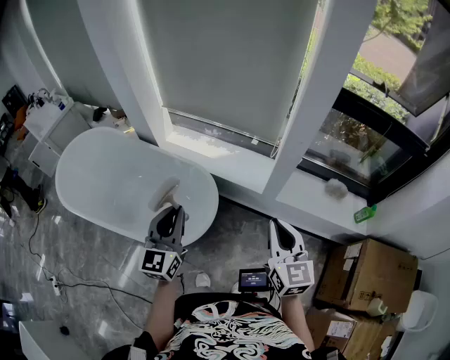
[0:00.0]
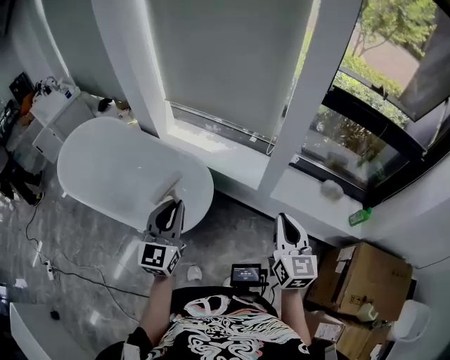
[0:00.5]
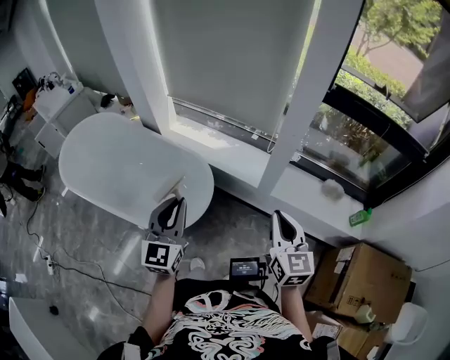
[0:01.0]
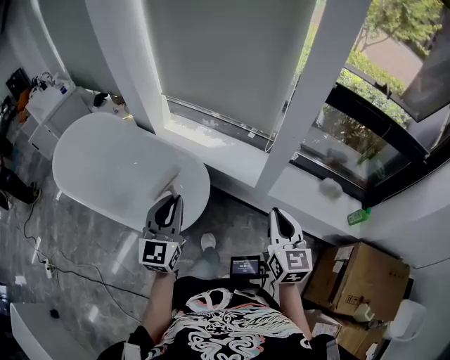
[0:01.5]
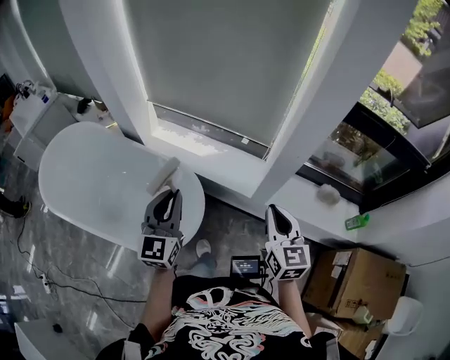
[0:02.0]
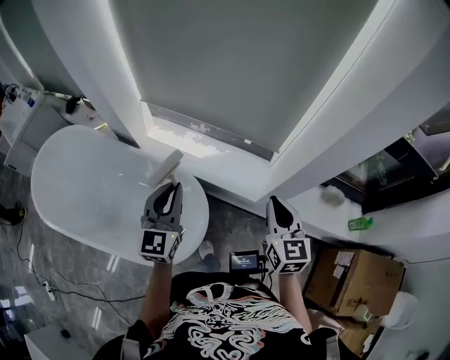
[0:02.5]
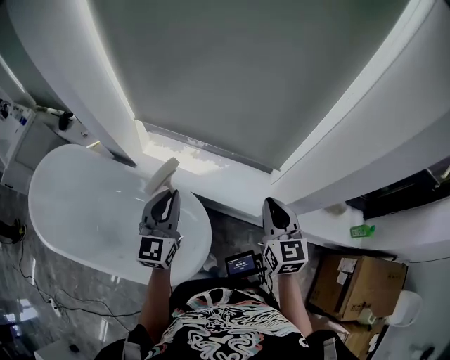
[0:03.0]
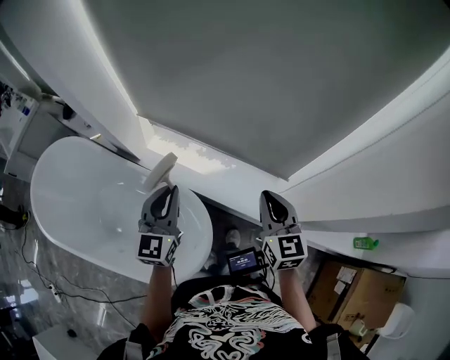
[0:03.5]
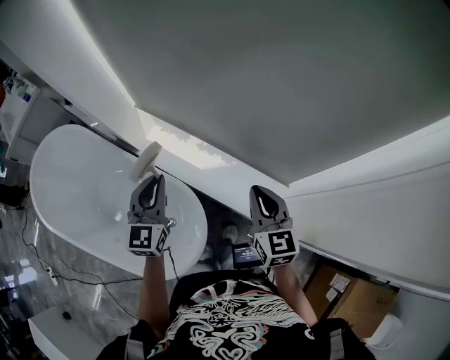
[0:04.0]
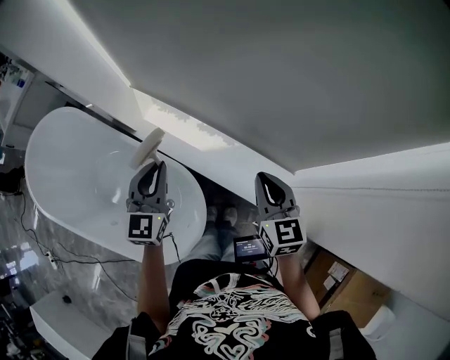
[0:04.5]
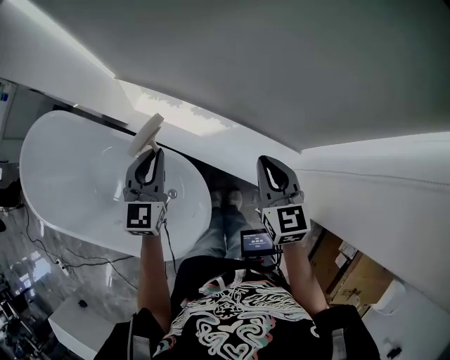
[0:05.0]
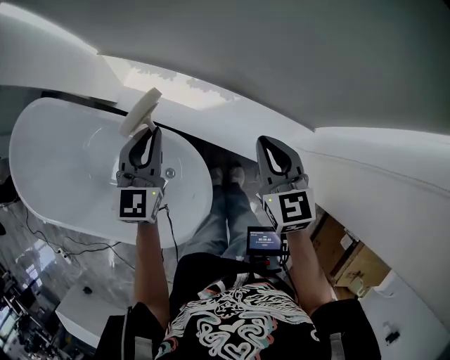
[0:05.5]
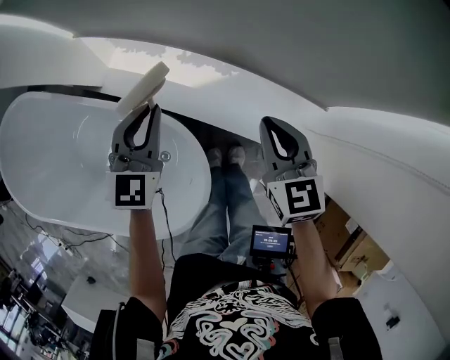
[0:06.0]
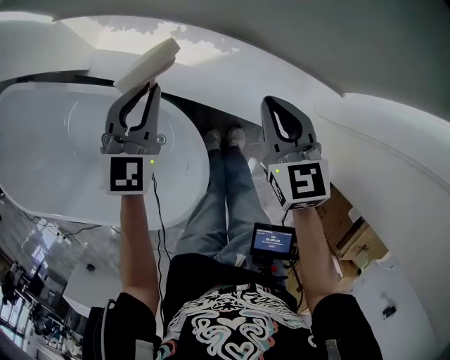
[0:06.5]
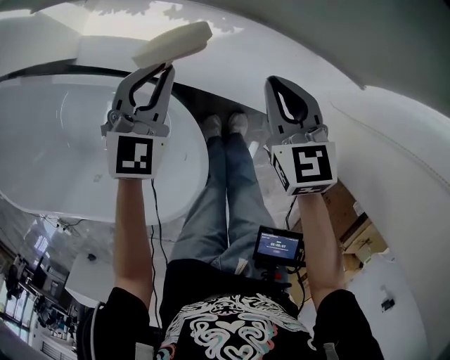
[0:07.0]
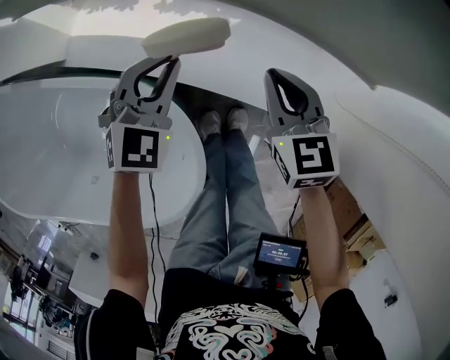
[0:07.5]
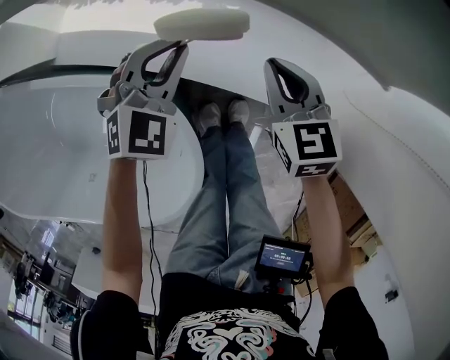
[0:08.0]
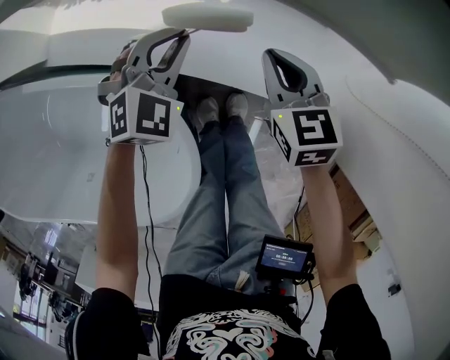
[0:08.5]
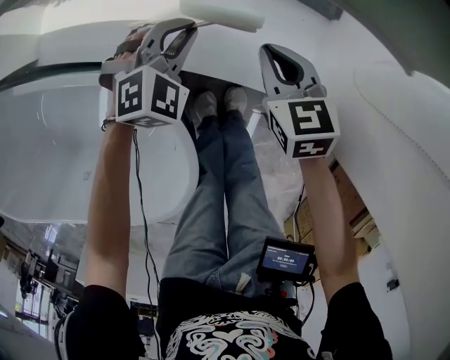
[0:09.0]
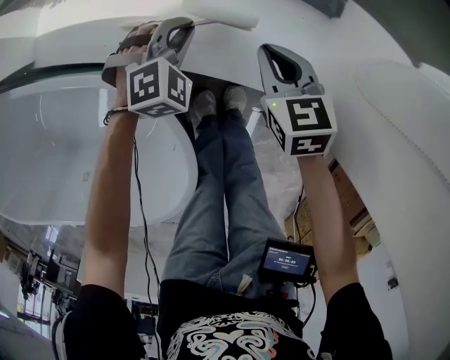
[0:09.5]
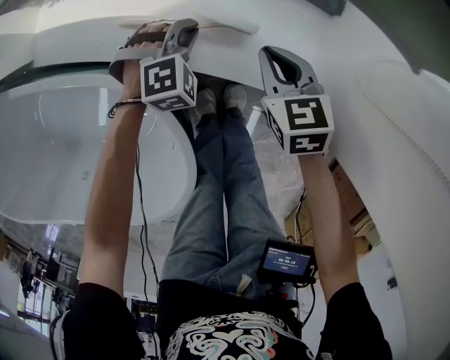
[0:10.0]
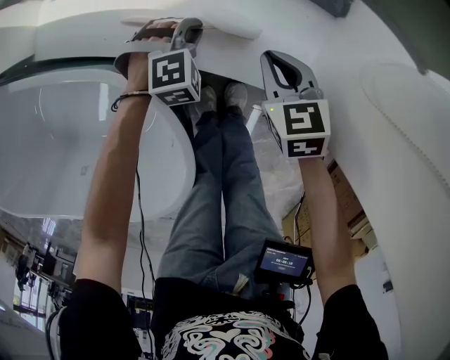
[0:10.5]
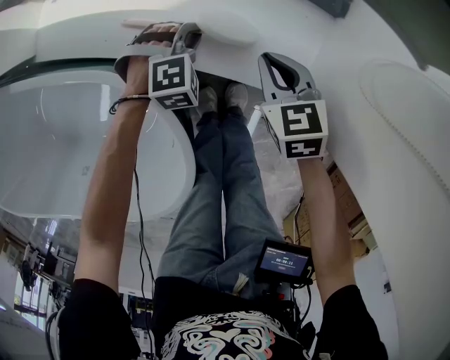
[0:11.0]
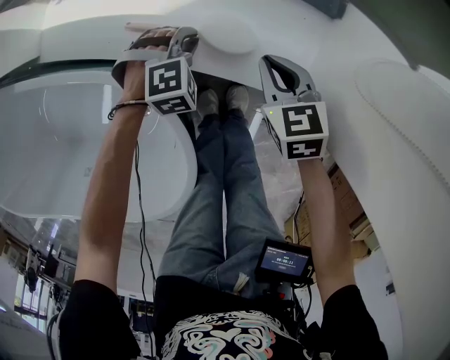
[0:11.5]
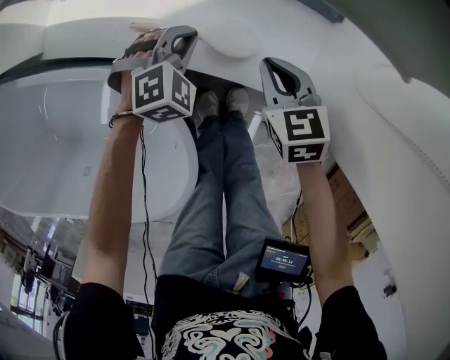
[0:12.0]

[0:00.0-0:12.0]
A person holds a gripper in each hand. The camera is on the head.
0:00.0 to 0:02.0: Both grippers move forward, some 15 cm.
0:02.0 to 0:04.0: Both grippers move forward, approximately 35 cm.
0:04.0 to 0:06.0: The left gripper is displaced downward and forward by approximately 20 cm. The right gripper heads downward, covering about 20 cm.
0:06.0 to 0:08.0: The left gripper is displaced downward and to the right by roughly 25 cm, and swivels roughly 40 degrees; the right gripper moves downward, approximately 25 cm.
0:08.0 to 0:10.0: The left gripper travels downward by about 15 cm, and changes its angle by some 30 degrees; the right gripper goes roughly 10 cm downward.
0:10.0 to 0:12.0: The grippers stay close to where they were, moving slightly.

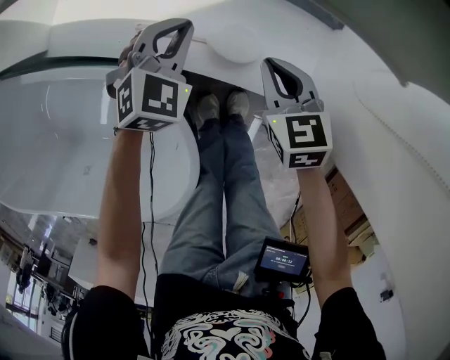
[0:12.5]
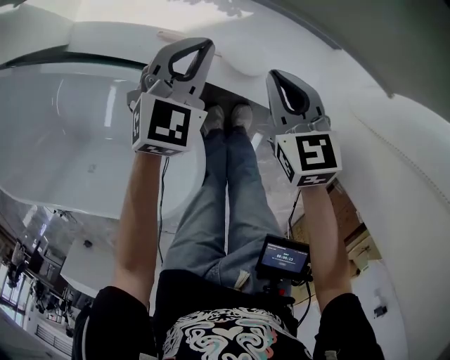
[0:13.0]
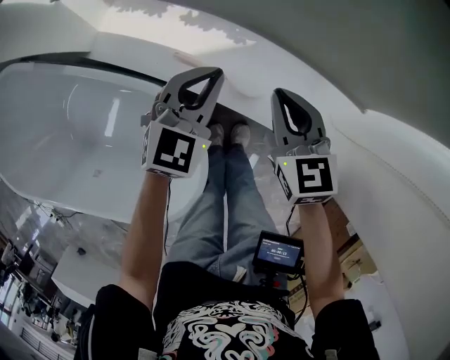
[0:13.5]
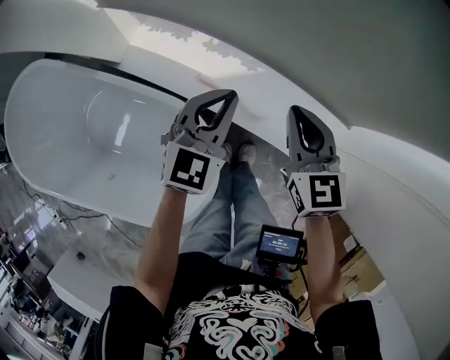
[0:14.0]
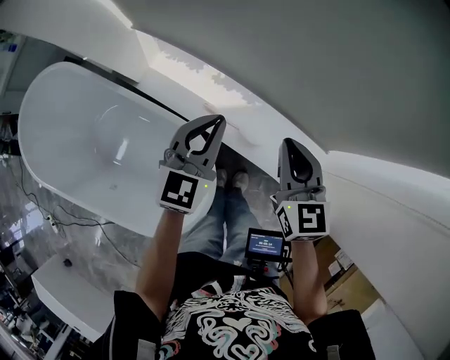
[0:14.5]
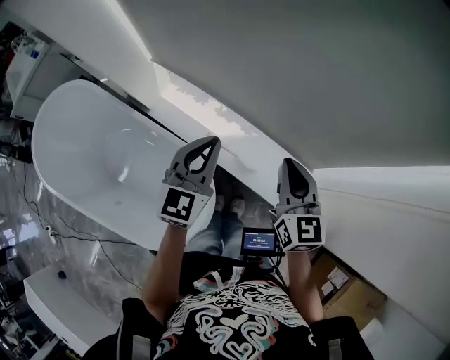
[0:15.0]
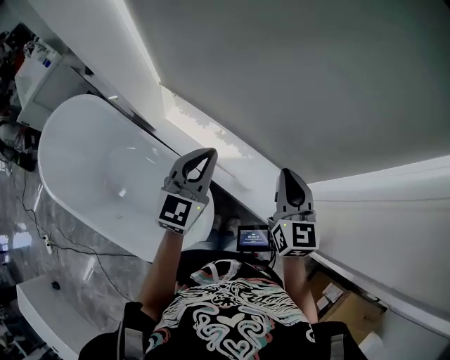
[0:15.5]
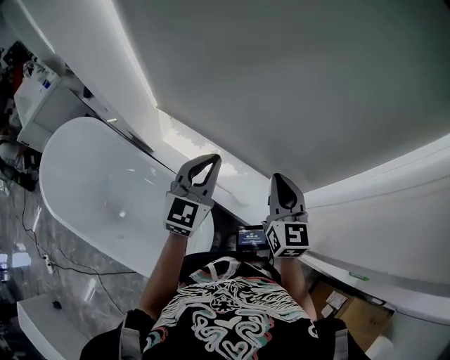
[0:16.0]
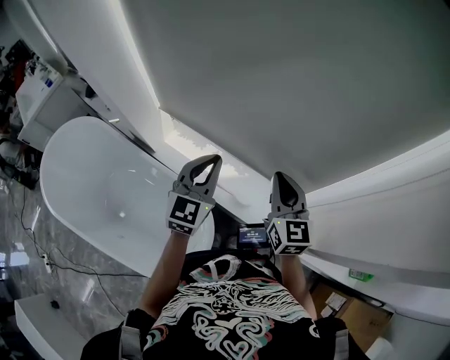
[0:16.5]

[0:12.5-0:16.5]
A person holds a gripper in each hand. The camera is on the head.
0:12.5 to 0:14.5: The grippers both shift upward by some 35 cm. The right gripper swivels some 20 degrees; the left gripper turns by some 40 degrees.
0:14.5 to 0:16.5: The grippers both shift upward by some 15 cm.

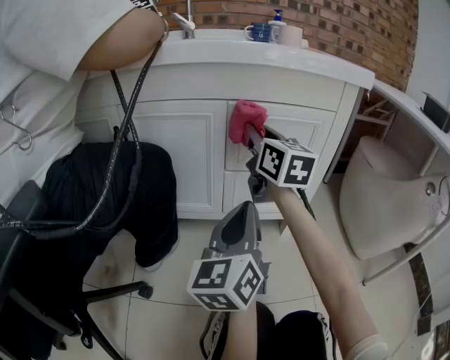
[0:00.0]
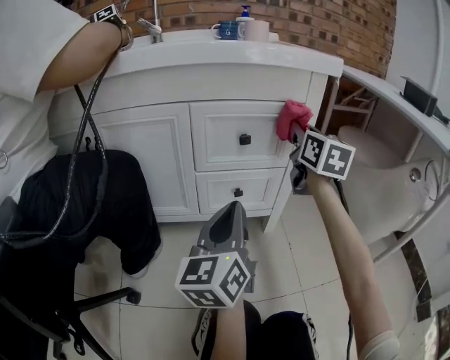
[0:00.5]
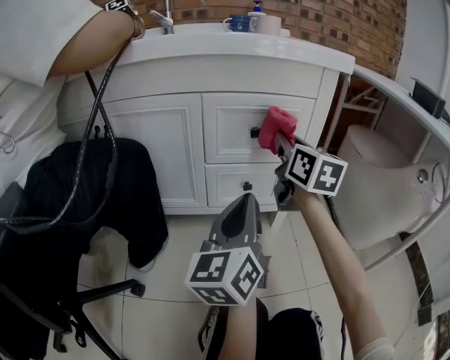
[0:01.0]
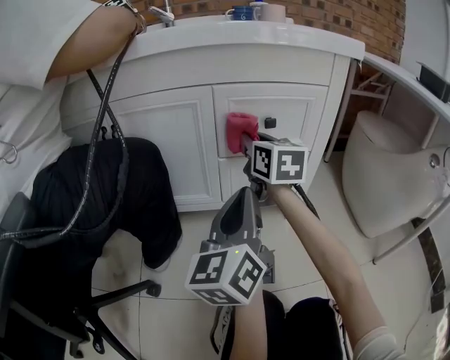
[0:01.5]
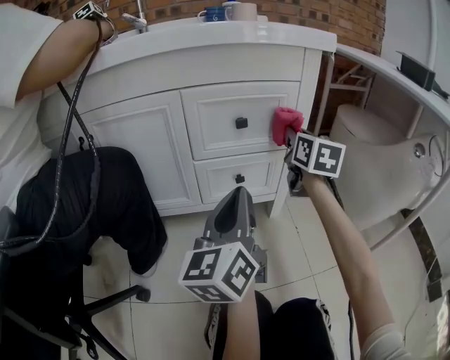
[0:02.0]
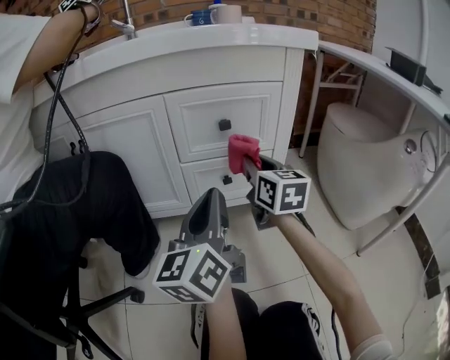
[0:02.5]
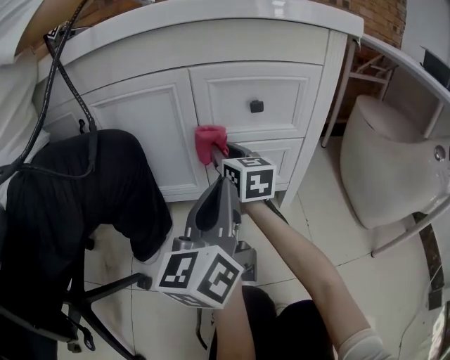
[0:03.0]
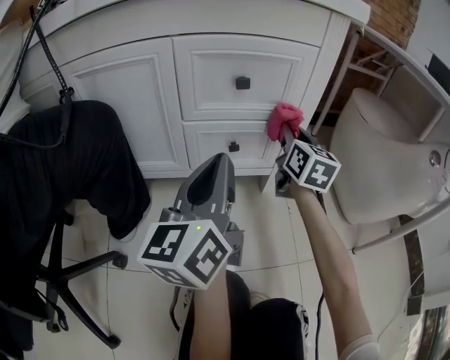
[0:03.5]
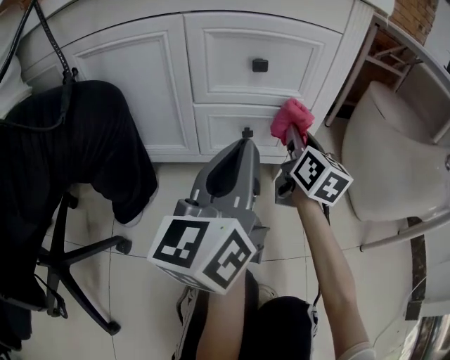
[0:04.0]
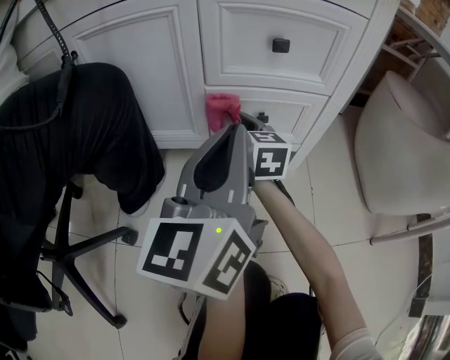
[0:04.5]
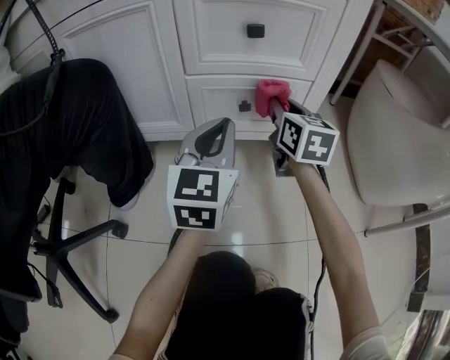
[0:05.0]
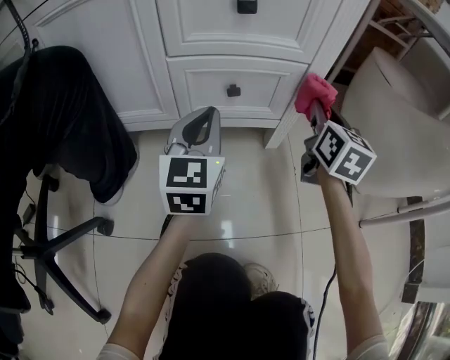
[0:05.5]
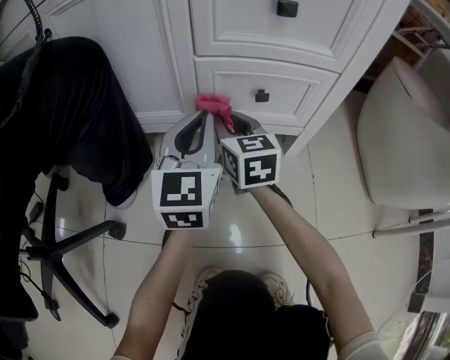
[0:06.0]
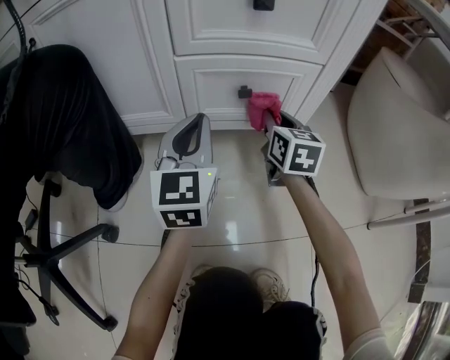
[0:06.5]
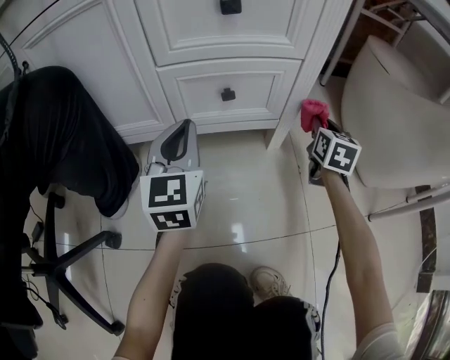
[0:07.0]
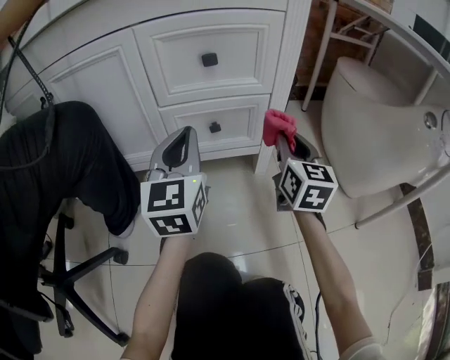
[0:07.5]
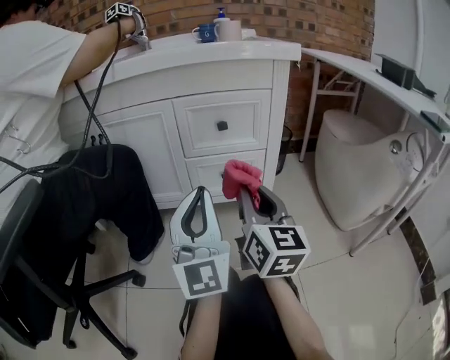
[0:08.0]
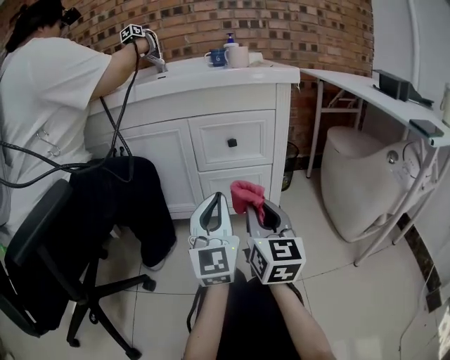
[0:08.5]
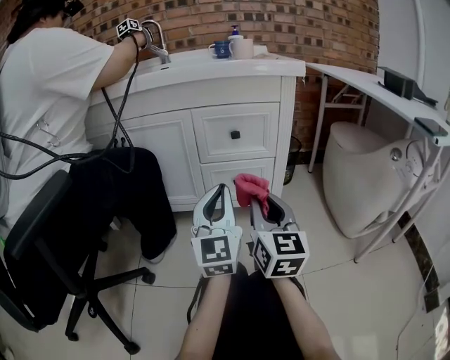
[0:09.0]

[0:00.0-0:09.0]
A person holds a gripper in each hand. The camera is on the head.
0:00.0 to 0:02.0: The right gripper goes left and right, roughly 20 cm each way, reversing 2 times, and changes its angle by approximately 30 degrees. Meanwhile the left gripper moves left and right over approximately 5 cm, changing direction 2 times.
0:02.0 to 0:04.5: The right gripper moves left and right over about 25 cm, changing direction 2 times, and changes its angle by some 30 degrees; the left gripper moves left and right over approximately 5 cm, changing direction 2 times.
0:04.5 to 0:07.0: The left gripper is displaced downward and forward by some 20 cm, and turns by some 30 degrees; the right gripper moves left and right over some 35 cm, changing direction 2 times, and swivels roughly 40 degrees.
0:07.0 to 0:09.0: The right gripper is displaced upward, backward and to the left by about 40 cm, and changes its angle by some 40 degrees, while the left gripper is displaced upward and backward by some 25 cm, and changes its angle by about 20 degrees.

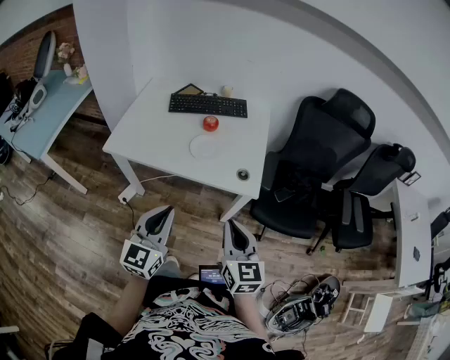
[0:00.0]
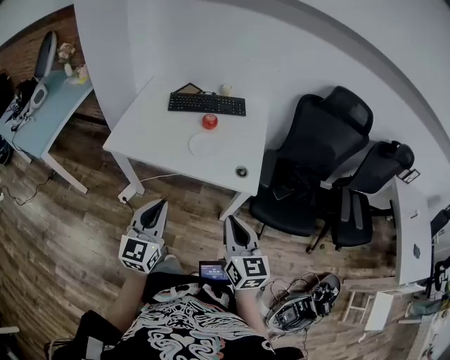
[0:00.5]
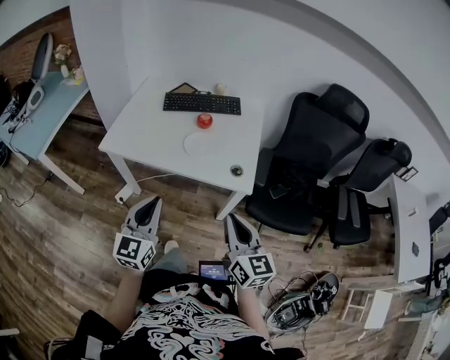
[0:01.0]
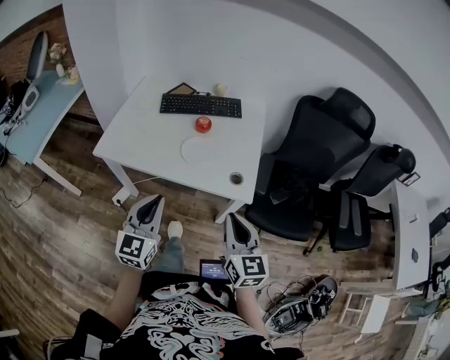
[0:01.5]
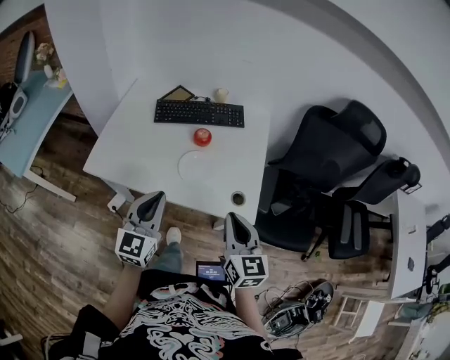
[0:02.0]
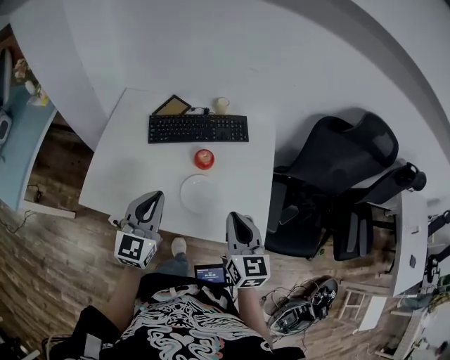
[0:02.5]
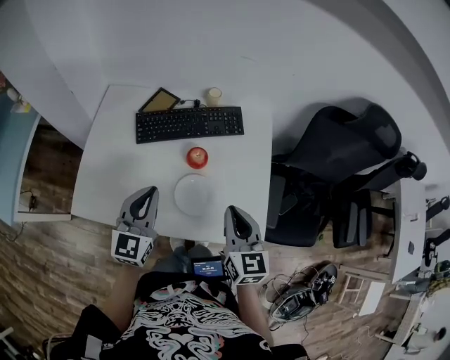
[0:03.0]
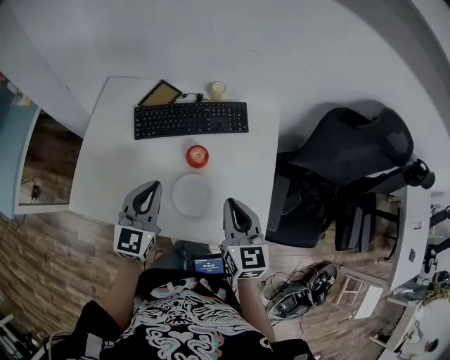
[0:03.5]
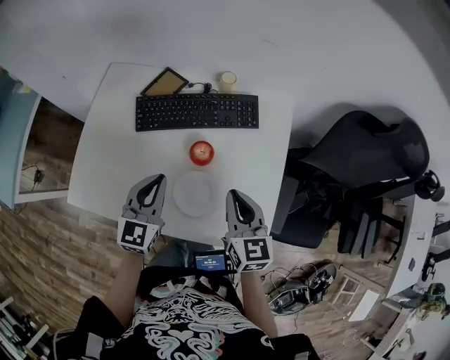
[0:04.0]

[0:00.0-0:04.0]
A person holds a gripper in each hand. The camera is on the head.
0:00.0 to 0:02.0: Both grippers move forward, about 20 cm.
0:02.0 to 0:04.0: The two grippers go about 25 cm forward.
